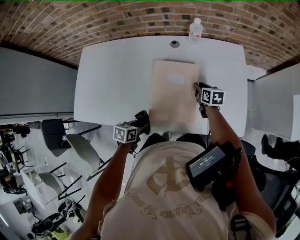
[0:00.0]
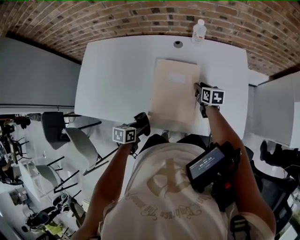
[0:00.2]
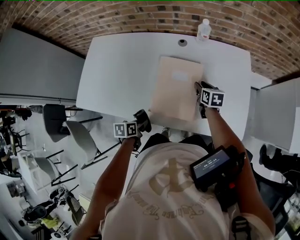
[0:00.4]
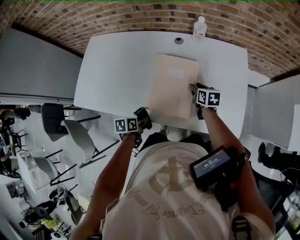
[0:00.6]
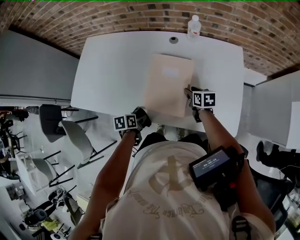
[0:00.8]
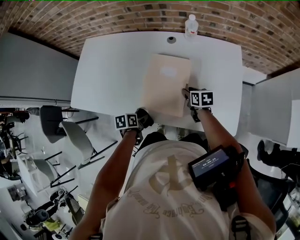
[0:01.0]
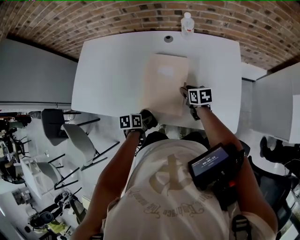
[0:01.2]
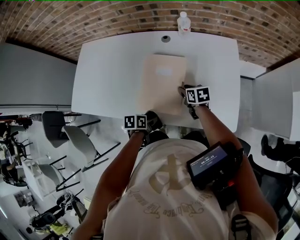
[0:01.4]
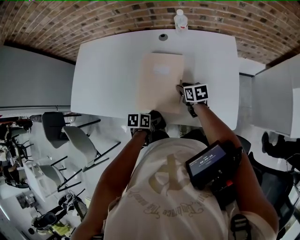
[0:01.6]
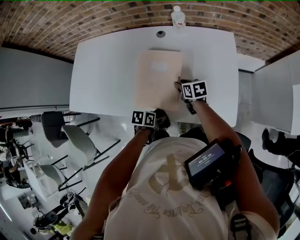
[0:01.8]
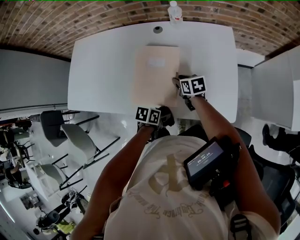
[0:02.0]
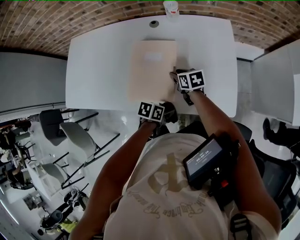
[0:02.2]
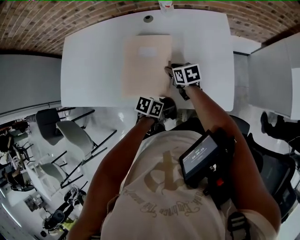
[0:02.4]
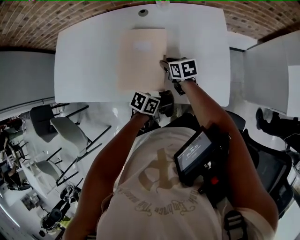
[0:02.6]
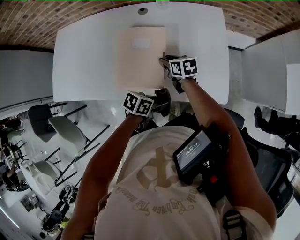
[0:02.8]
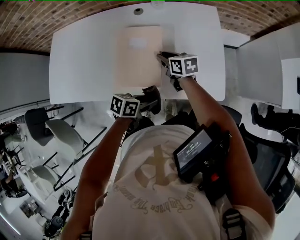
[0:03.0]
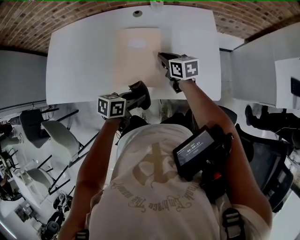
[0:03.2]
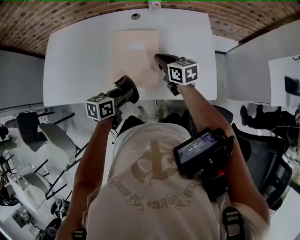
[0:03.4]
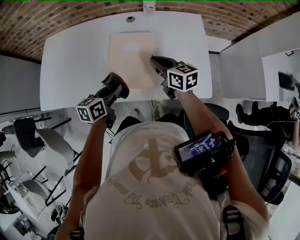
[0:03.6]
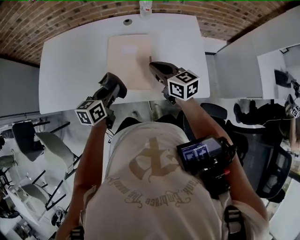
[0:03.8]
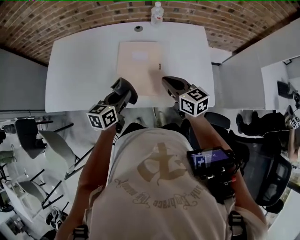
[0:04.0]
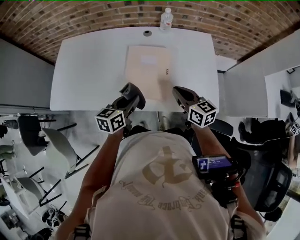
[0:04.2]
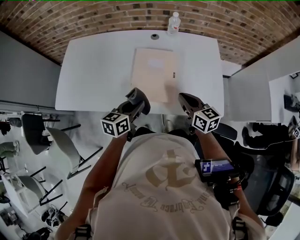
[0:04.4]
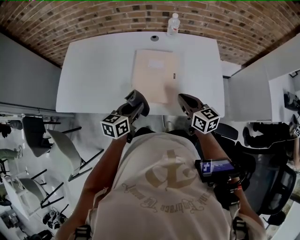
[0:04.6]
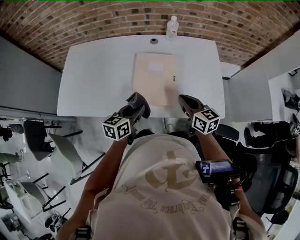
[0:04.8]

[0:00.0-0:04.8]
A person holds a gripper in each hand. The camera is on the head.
0:00.0 to 0:01.6: The left gripper is displaced to the right by some 15 cm; the right gripper travels backward by roughly 5 cm.
0:01.6 to 0:03.2: The two grippers go about 10 cm upward. The left gripper turns by roughly 30 degrees; the right gripper closes up.
0:03.2 to 0:04.8: The left gripper goes some 10 cm to the left and upward, and changes its angle by roughly 30 degrees, while the right gripper goes approximately 15 cm backward and upward.

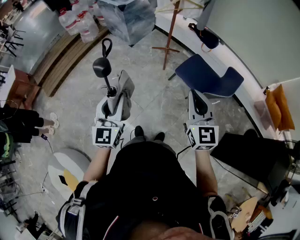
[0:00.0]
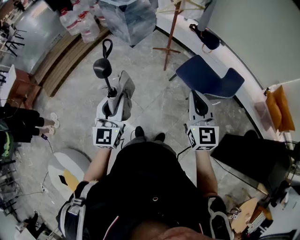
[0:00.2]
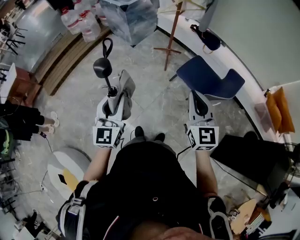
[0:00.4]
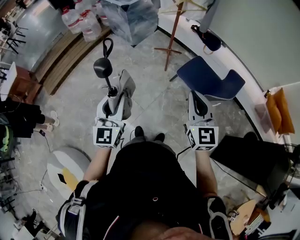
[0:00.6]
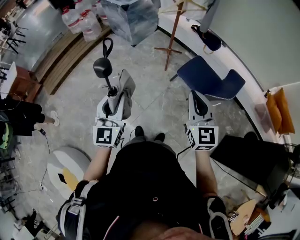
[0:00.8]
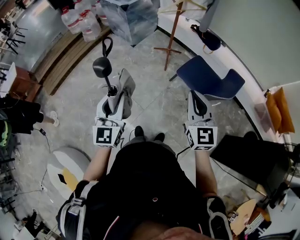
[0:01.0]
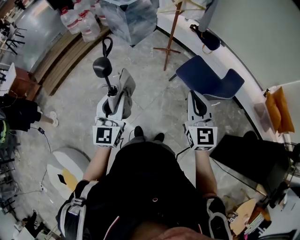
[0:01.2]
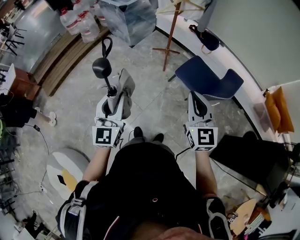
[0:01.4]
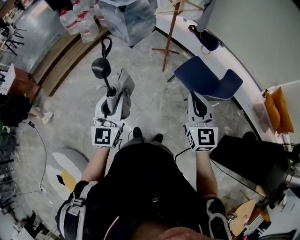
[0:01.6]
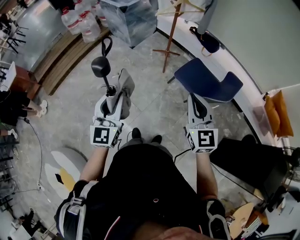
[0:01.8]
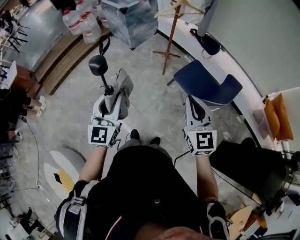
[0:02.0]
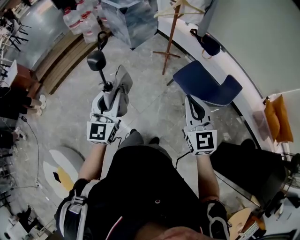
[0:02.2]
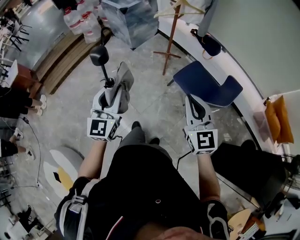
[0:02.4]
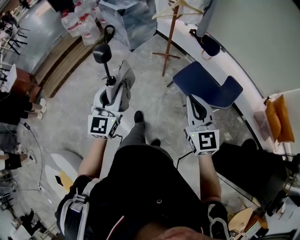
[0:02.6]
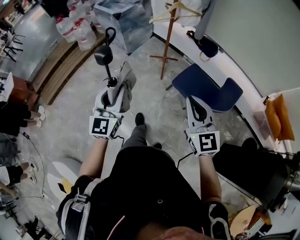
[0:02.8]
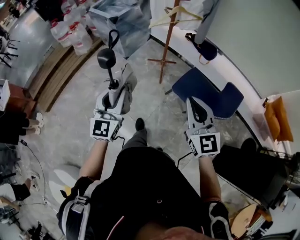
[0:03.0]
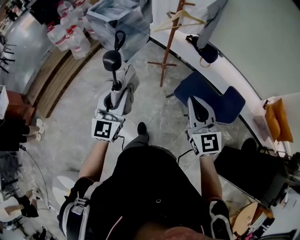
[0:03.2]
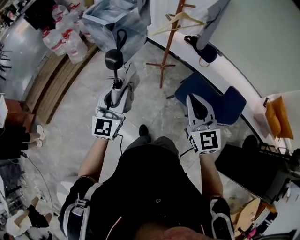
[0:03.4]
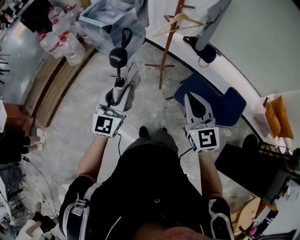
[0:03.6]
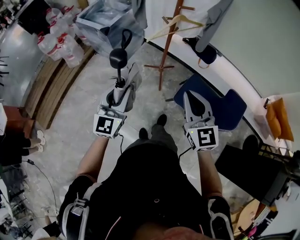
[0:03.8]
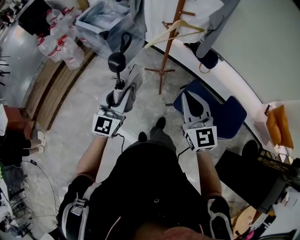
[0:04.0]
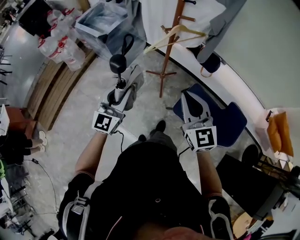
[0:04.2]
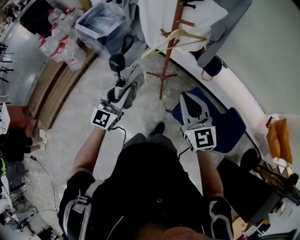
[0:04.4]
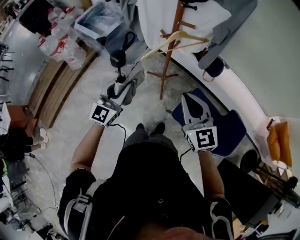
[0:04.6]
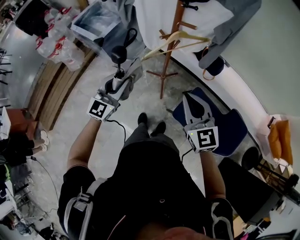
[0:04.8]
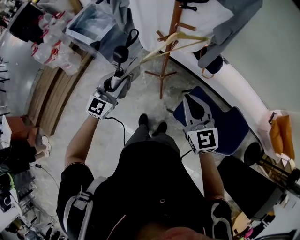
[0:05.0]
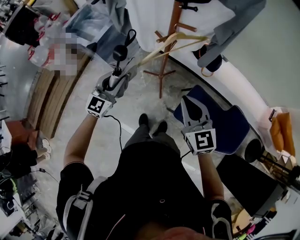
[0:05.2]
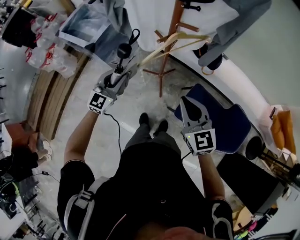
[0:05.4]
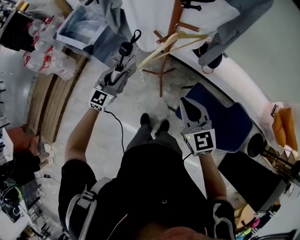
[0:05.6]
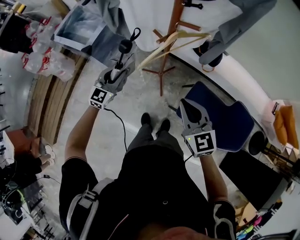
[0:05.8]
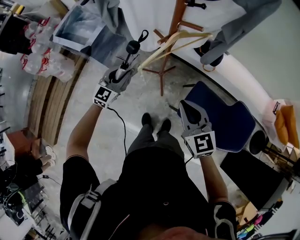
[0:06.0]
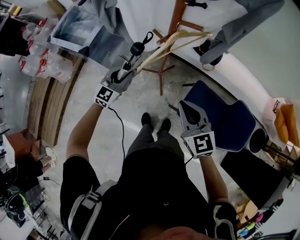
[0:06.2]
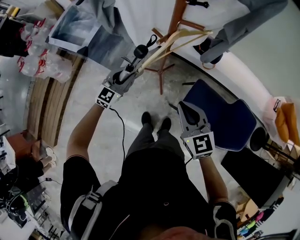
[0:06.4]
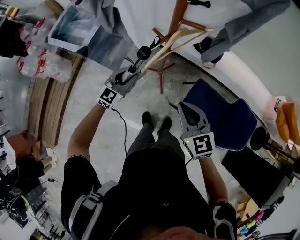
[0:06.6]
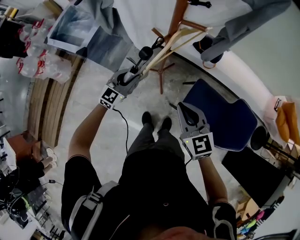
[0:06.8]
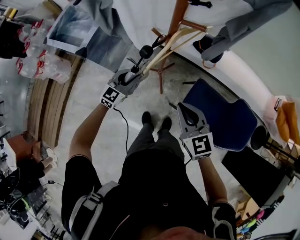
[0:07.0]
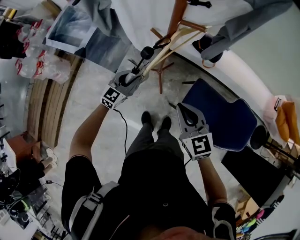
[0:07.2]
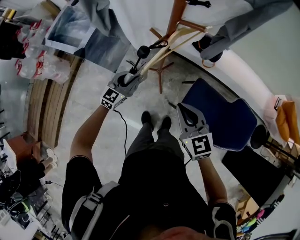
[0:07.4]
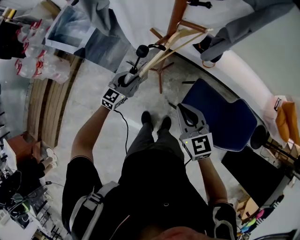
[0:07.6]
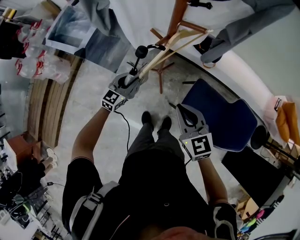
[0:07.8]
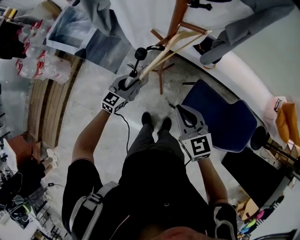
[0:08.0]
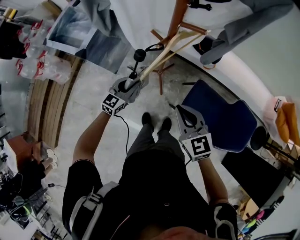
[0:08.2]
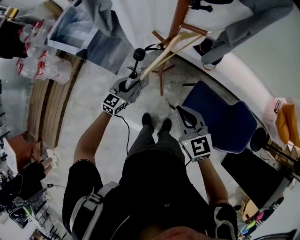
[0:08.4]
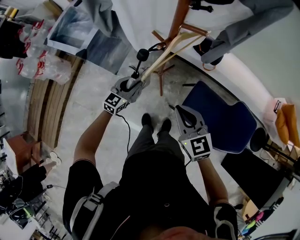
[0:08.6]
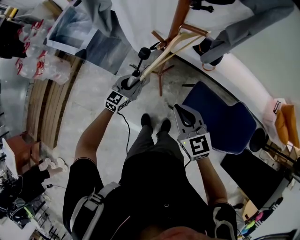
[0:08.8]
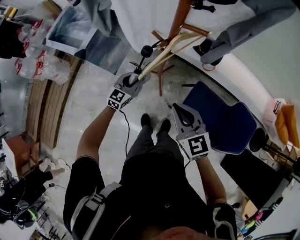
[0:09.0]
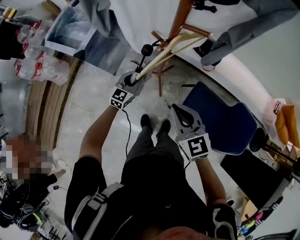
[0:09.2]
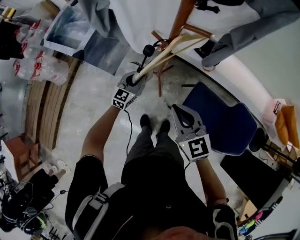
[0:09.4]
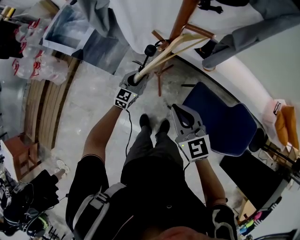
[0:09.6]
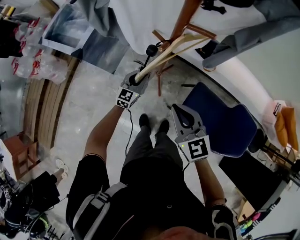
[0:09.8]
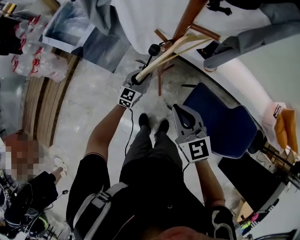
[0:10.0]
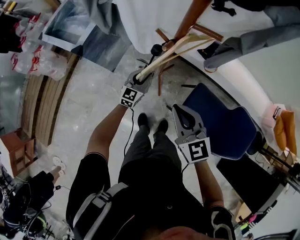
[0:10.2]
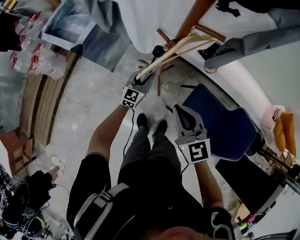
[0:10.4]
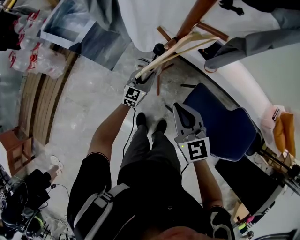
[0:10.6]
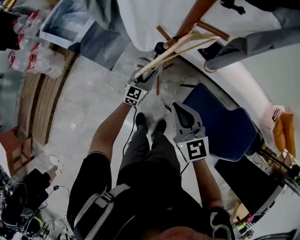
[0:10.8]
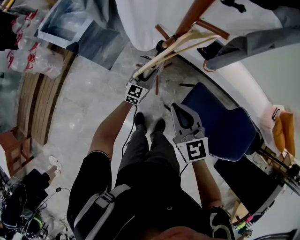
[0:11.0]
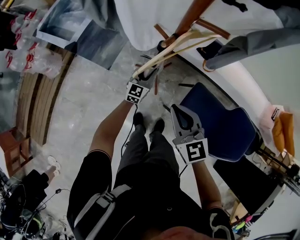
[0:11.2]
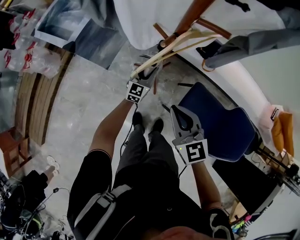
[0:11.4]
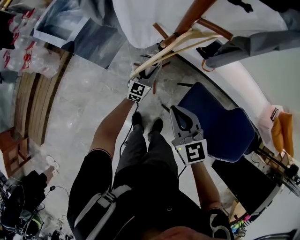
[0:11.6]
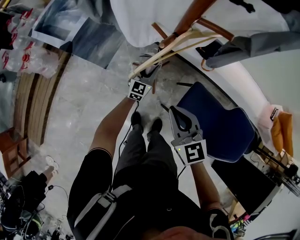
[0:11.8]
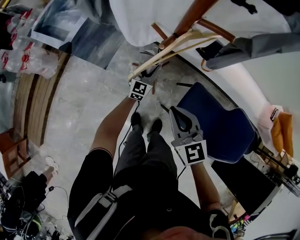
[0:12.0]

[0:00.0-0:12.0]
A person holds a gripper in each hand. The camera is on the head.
0:00.0 to 0:01.6: The grippers make only small movements.
0:01.6 to 0:03.0: Both grippers move forward, roughly 15 cm.
0:03.0 to 0:04.4: The two grippers go some 30 cm forward.
0:04.4 to 0:06.0: The right gripper moves downward and forward, roughly 10 cm. The left gripper moves forward and downward, some 25 cm, and rotates about 20 degrees.
0:06.0 to 0:07.6: The left gripper shifts some 5 cm downward.
0:07.6 to 0:09.0: The grippers make only small movements.
0:09.0 to 0:10.4: The left gripper goes roughly 5 cm downward.
0:10.4 to 0:12.0: The right gripper changes place by some 5 cm. The left gripper is displaced to the right and forward by some 5 cm.

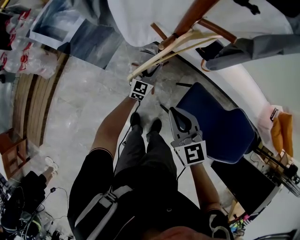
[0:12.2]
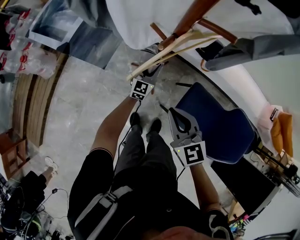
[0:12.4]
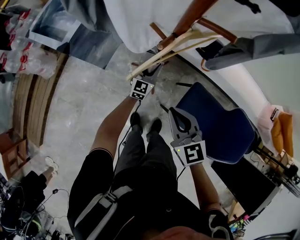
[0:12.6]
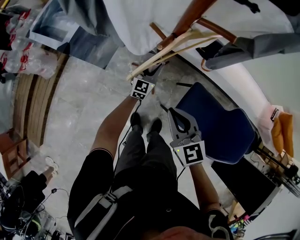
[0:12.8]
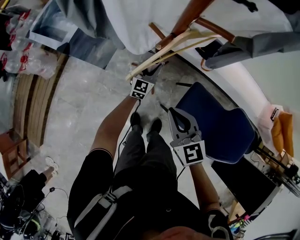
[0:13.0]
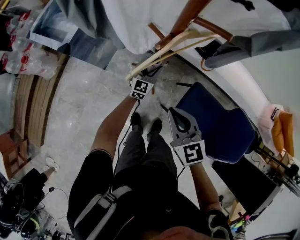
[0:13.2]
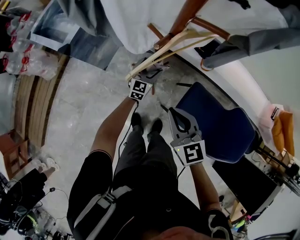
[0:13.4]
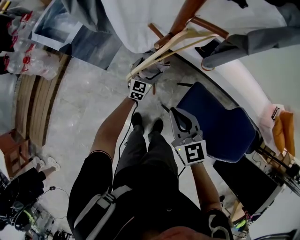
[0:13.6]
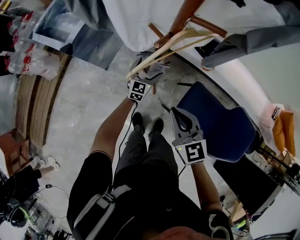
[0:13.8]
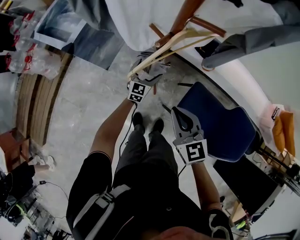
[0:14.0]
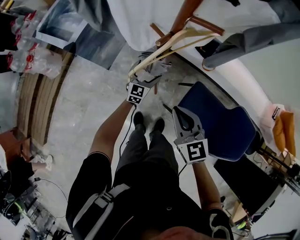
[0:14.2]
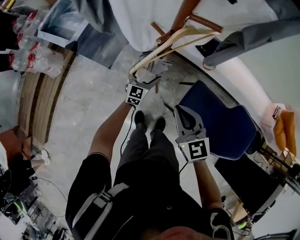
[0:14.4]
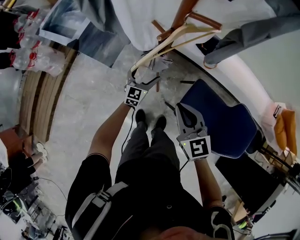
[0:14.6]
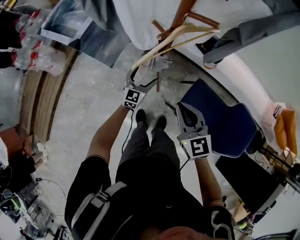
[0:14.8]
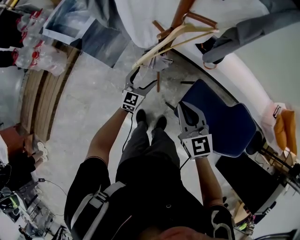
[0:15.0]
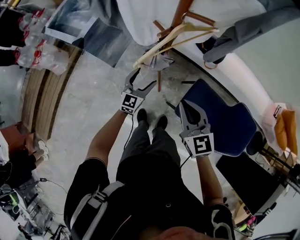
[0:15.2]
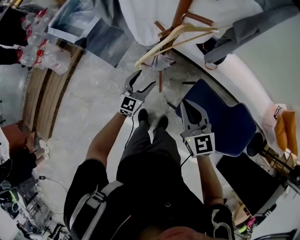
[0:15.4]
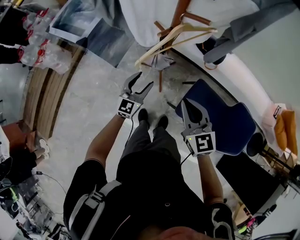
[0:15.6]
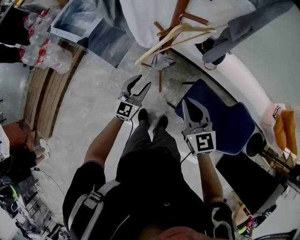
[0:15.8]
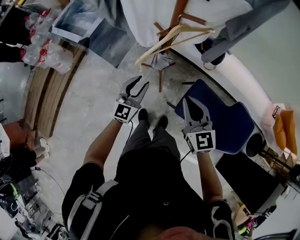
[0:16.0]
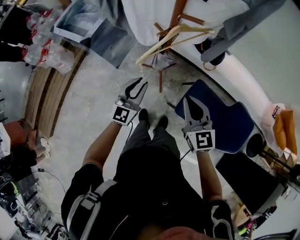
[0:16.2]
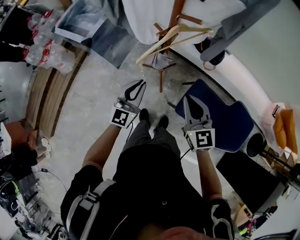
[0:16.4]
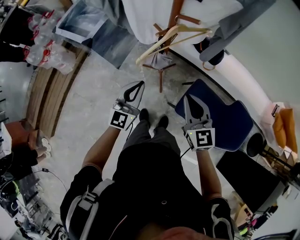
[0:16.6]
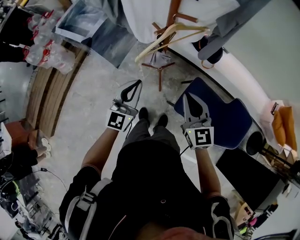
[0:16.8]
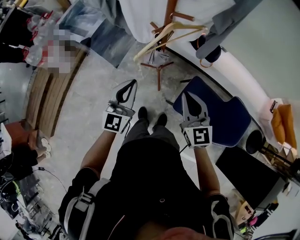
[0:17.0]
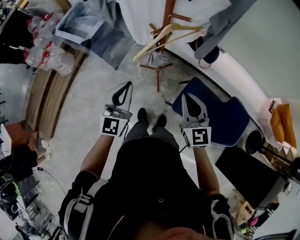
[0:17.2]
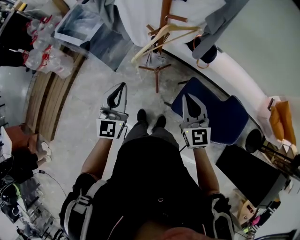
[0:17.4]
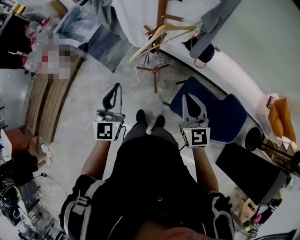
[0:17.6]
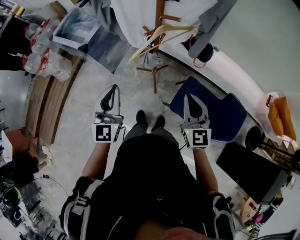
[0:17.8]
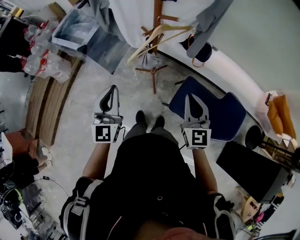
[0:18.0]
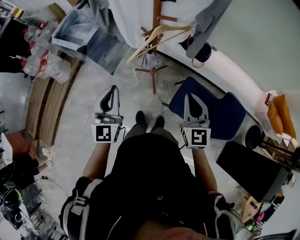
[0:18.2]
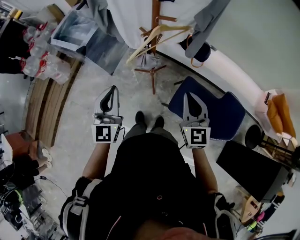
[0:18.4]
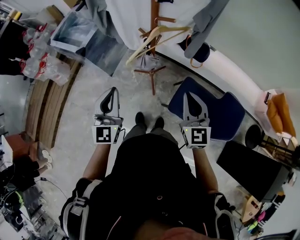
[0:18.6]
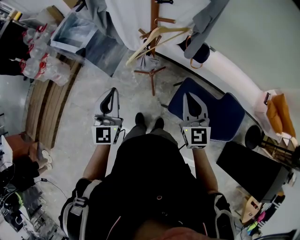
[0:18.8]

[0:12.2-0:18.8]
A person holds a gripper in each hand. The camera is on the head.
0:12.2 to 0:13.8: The left gripper opens up.
0:13.8 to 0:15.4: The left gripper heads backward and upward, covering roughly 15 cm, and closes, while the right gripper shifts about 5 cm upward.
0:15.4 to 0:17.2: The right gripper shifts about 5 cm upward, while the left gripper travels upward and backward by about 25 cm, and closes up.
0:17.2 to 0:18.8: The left gripper shifts by approximately 5 cm.
